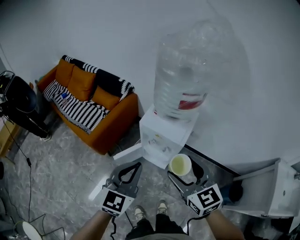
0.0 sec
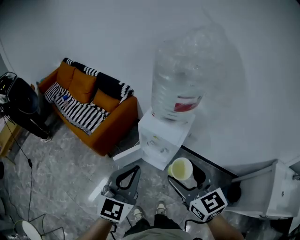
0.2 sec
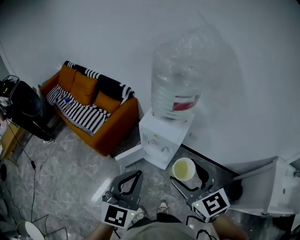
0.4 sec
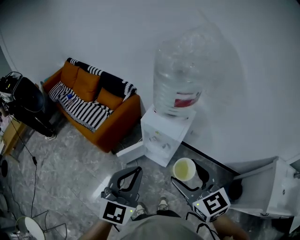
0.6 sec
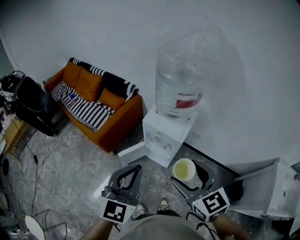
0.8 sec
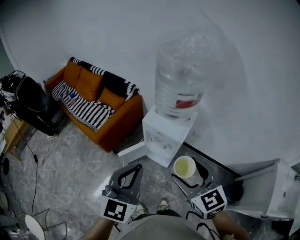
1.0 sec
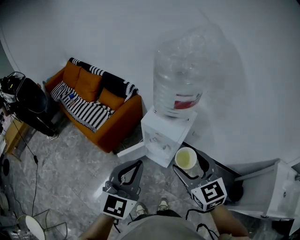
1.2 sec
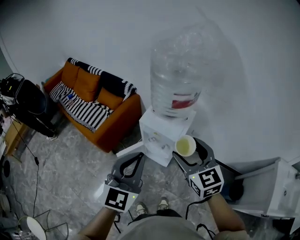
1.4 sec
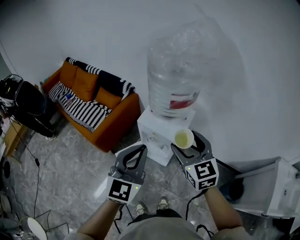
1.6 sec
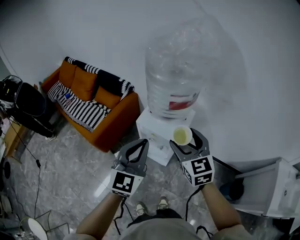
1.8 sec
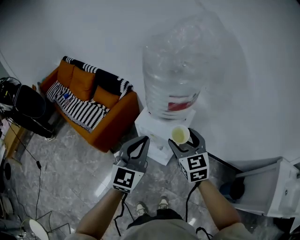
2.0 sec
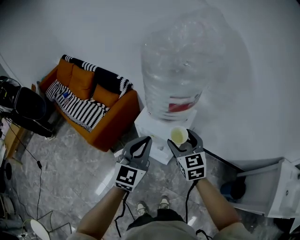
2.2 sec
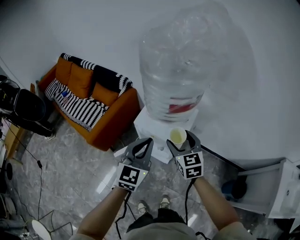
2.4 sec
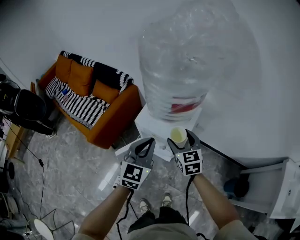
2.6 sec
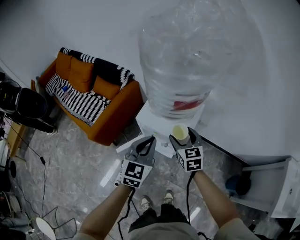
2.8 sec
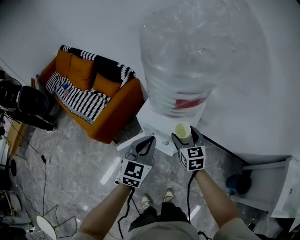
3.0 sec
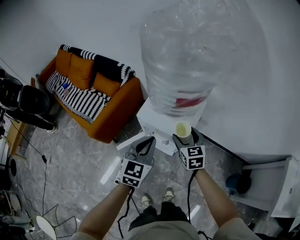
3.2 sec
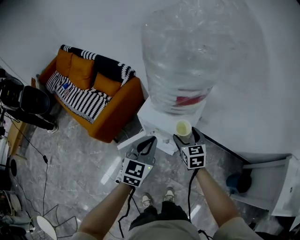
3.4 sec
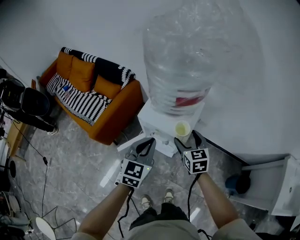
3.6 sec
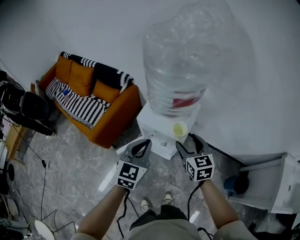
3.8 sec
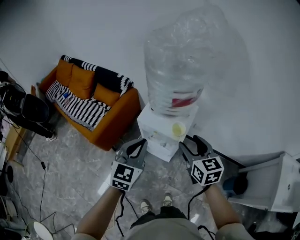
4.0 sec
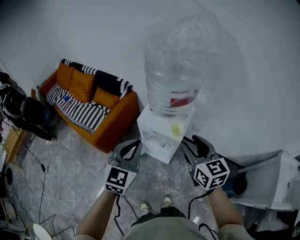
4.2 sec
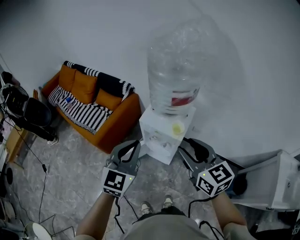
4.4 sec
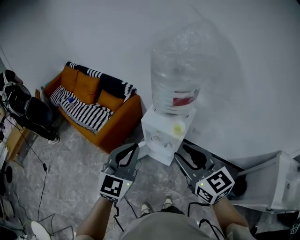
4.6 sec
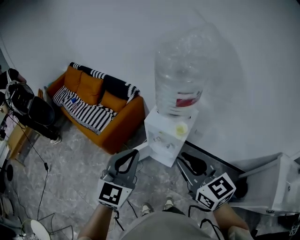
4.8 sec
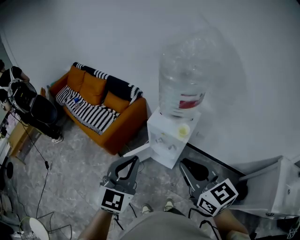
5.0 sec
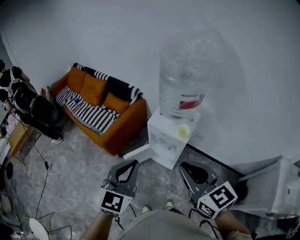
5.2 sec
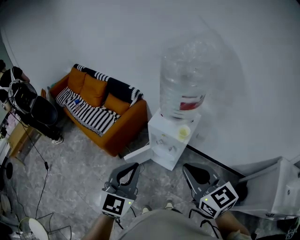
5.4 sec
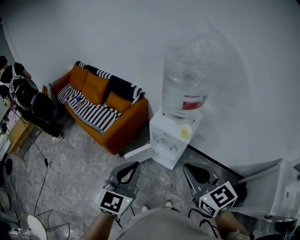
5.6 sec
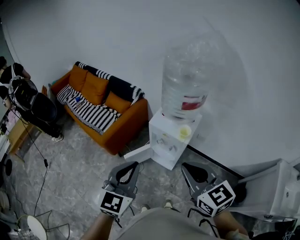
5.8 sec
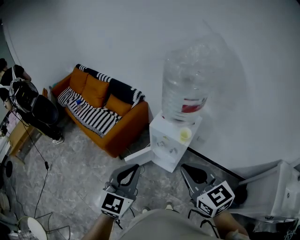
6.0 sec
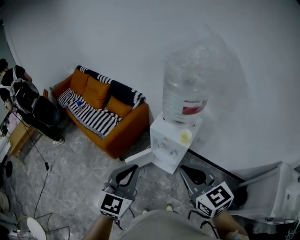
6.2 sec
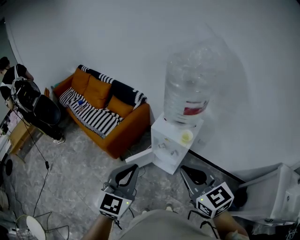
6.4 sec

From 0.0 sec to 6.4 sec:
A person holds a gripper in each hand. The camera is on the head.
From 0.0 sec to 1.6 sec: The right gripper travels forward and to the right by approximately 10 cm. The left gripper heads upward, covering approximately 10 cm, and goes backward and returns, about 10 cm each way.
From 1.6 sec to 3.2 sec: The grippers both shift downward and forward by about 25 cm.
From 3.2 sec to 4.8 sec: The grippers both shift upward and backward by roughly 35 cm. The right gripper swivels approximately 30 degrees, and closes.
From 4.8 sec to 6.4 sec: The left gripper shifts by roughly 5 cm.

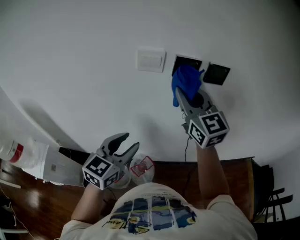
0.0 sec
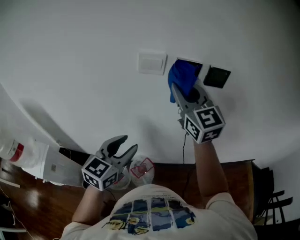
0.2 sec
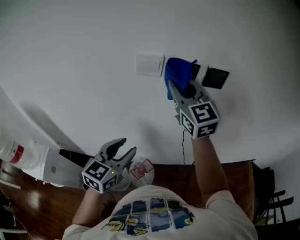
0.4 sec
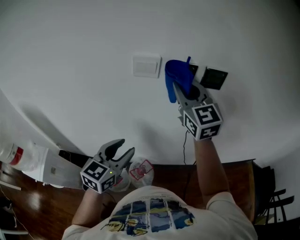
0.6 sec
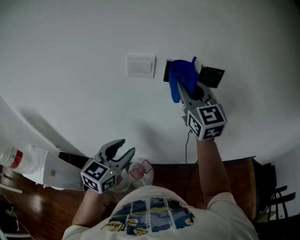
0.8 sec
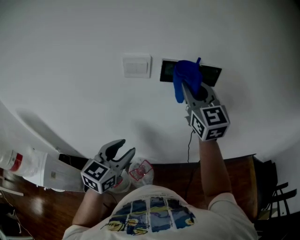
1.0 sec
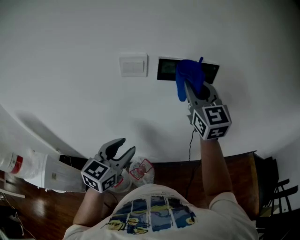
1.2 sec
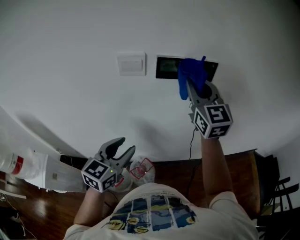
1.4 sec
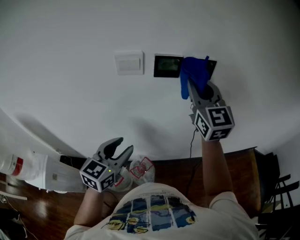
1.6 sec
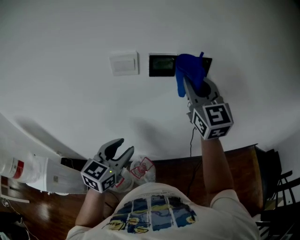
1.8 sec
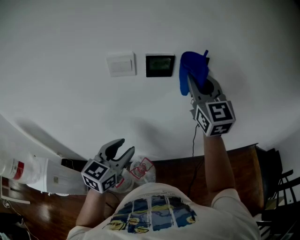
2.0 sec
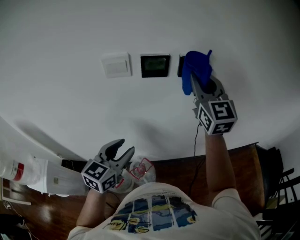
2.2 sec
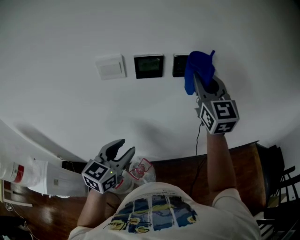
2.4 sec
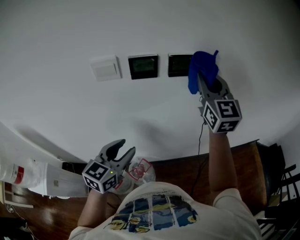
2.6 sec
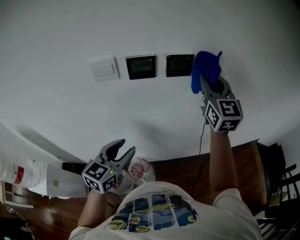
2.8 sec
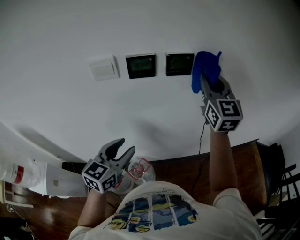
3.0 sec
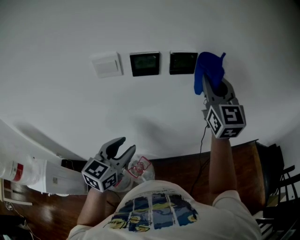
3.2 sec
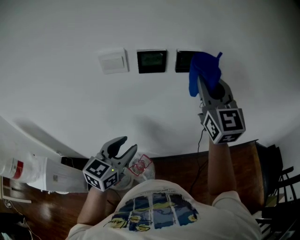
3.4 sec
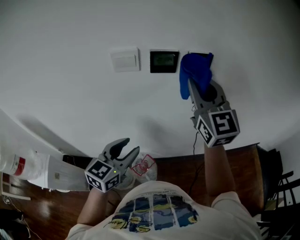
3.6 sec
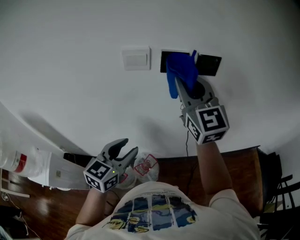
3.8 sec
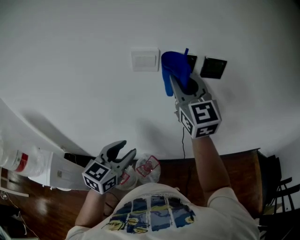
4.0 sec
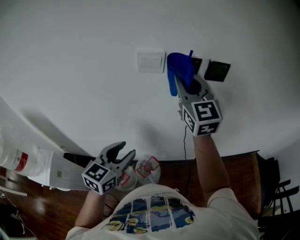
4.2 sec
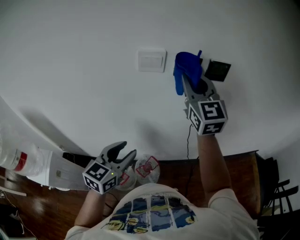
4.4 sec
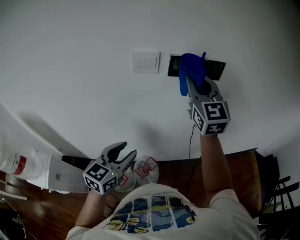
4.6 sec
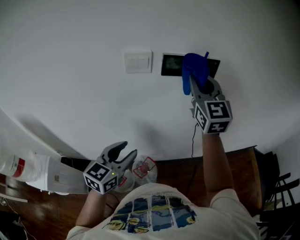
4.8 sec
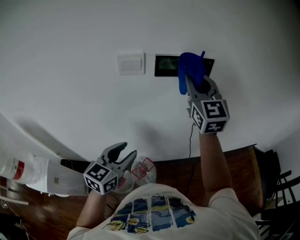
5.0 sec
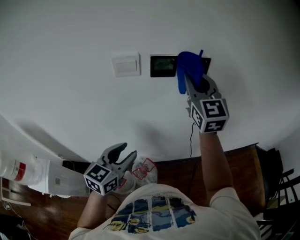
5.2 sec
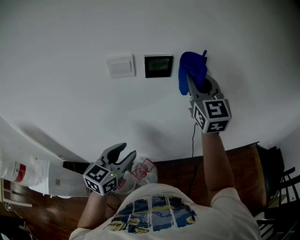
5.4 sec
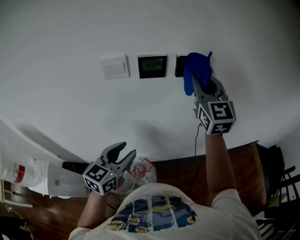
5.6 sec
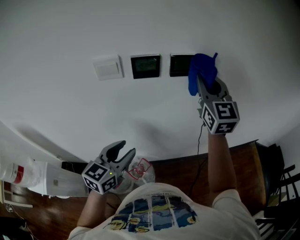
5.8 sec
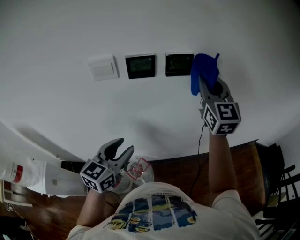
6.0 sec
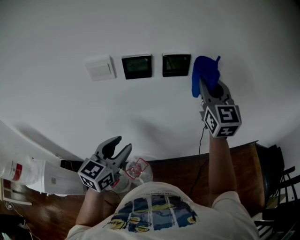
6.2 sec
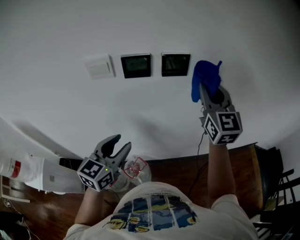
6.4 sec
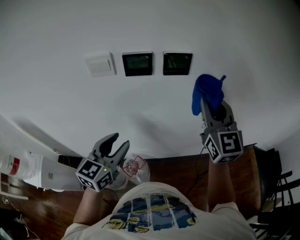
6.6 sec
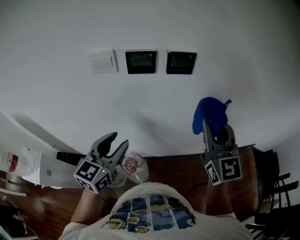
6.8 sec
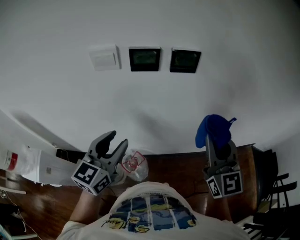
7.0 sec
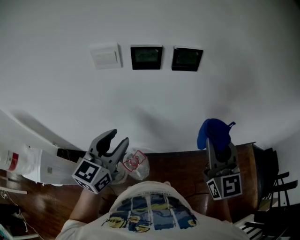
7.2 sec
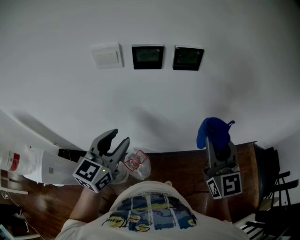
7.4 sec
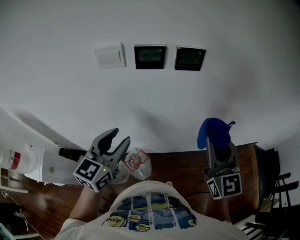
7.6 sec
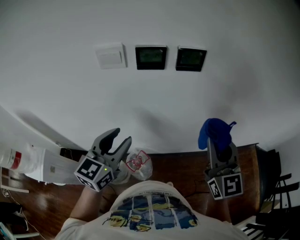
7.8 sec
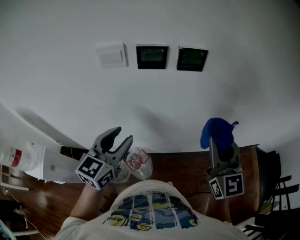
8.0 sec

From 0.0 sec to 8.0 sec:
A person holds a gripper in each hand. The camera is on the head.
From 0.0 sec to 1.6 sec: The right gripper is displaced to the right by about 10 cm.
From 1.6 sec to 3.2 sec: The right gripper heads to the right, covering roughly 10 cm, while the left gripper moves to the right, approximately 5 cm.
From 3.2 sec to 4.8 sec: The right gripper shifts approximately 15 cm to the left. The left gripper travels to the left by about 5 cm.
From 4.8 sec to 6.4 sec: The left gripper goes approximately 10 cm to the right and forward. The right gripper shifts some 15 cm to the right.
From 6.4 sec to 8.0 sec: The right gripper heads backward and downward, covering some 15 cm.

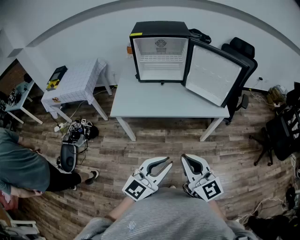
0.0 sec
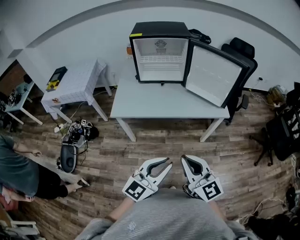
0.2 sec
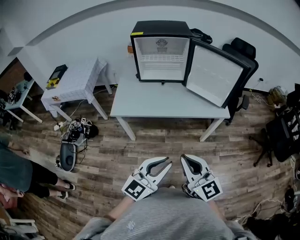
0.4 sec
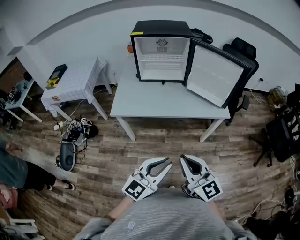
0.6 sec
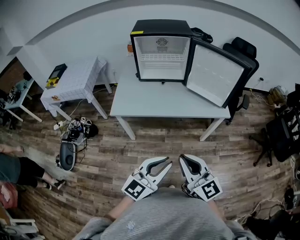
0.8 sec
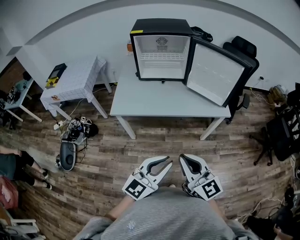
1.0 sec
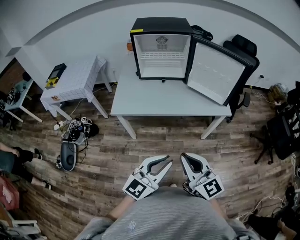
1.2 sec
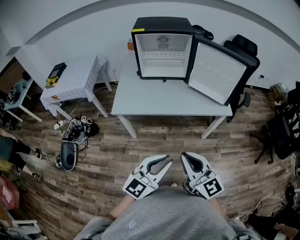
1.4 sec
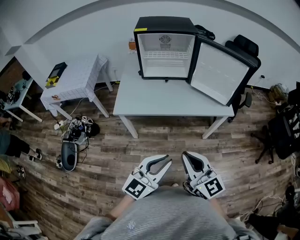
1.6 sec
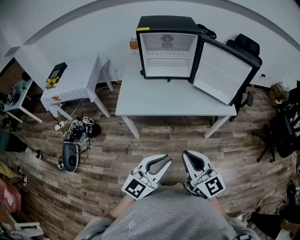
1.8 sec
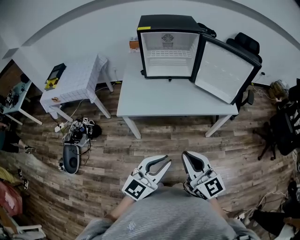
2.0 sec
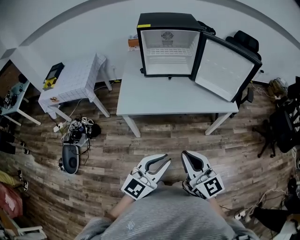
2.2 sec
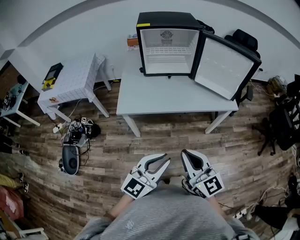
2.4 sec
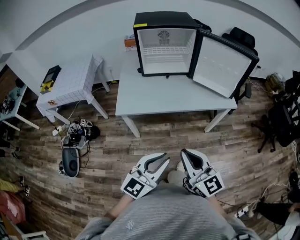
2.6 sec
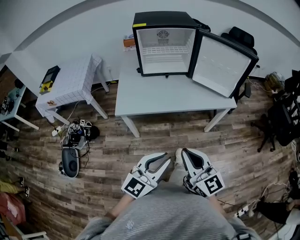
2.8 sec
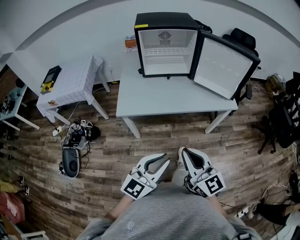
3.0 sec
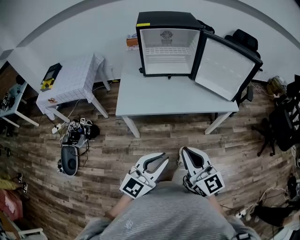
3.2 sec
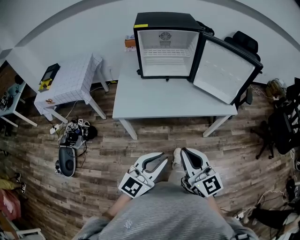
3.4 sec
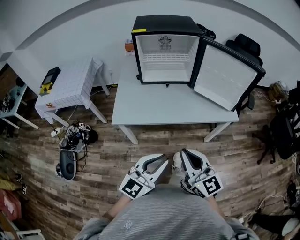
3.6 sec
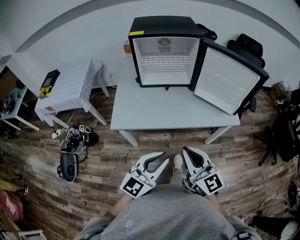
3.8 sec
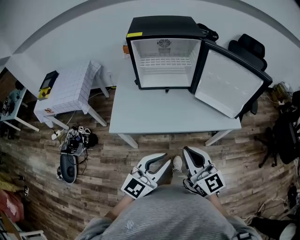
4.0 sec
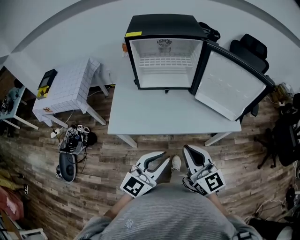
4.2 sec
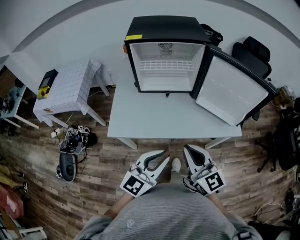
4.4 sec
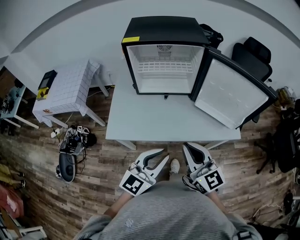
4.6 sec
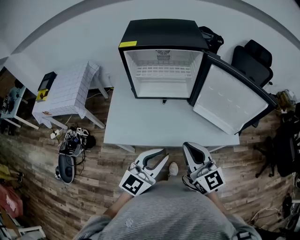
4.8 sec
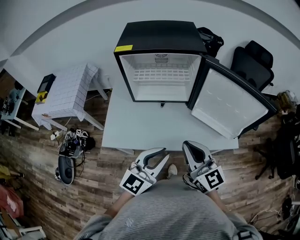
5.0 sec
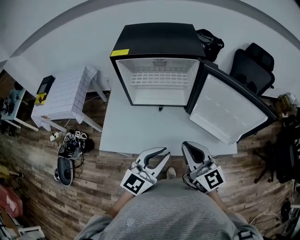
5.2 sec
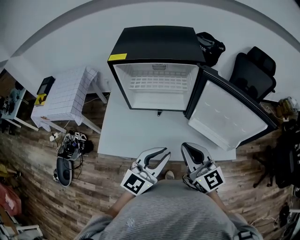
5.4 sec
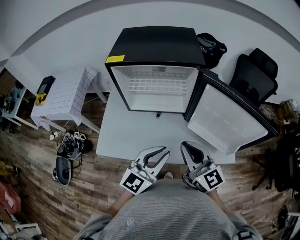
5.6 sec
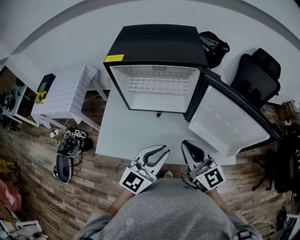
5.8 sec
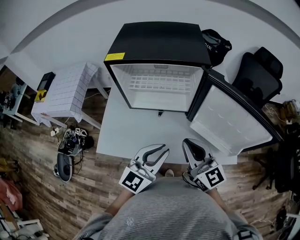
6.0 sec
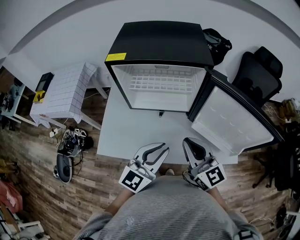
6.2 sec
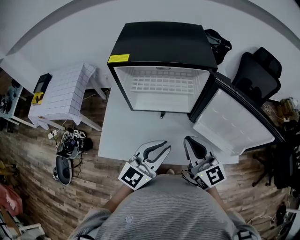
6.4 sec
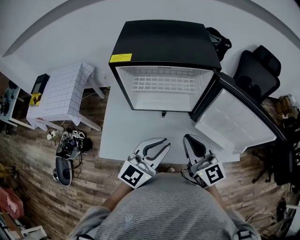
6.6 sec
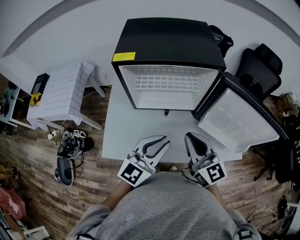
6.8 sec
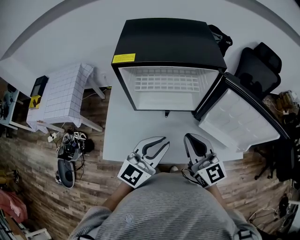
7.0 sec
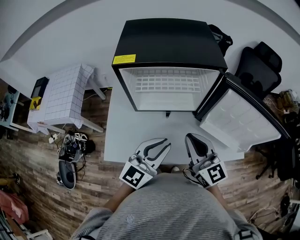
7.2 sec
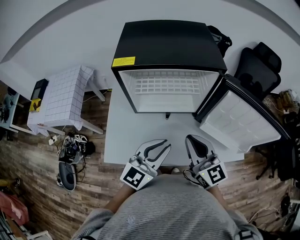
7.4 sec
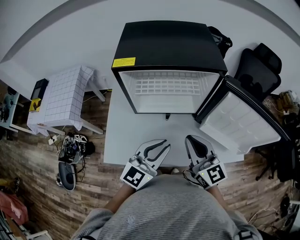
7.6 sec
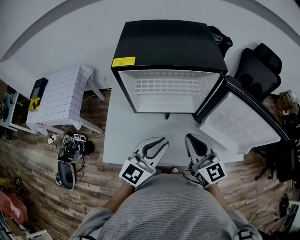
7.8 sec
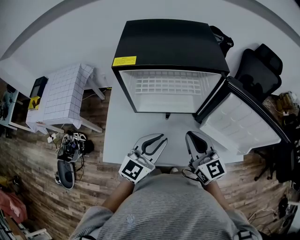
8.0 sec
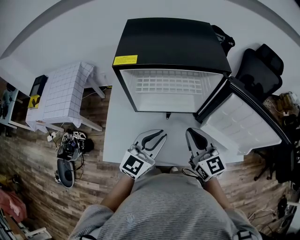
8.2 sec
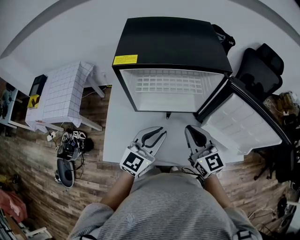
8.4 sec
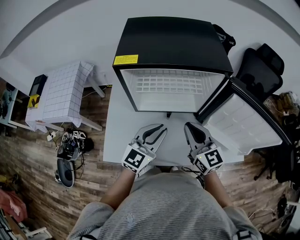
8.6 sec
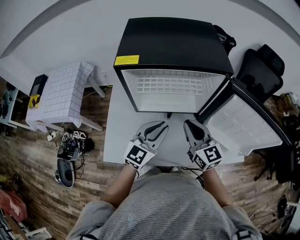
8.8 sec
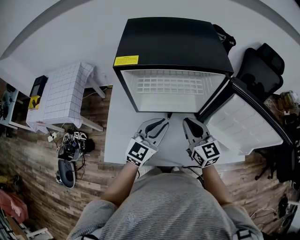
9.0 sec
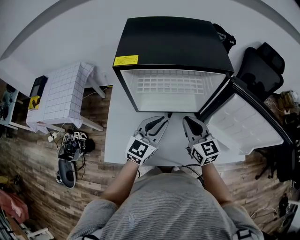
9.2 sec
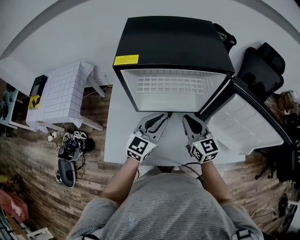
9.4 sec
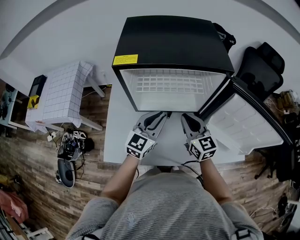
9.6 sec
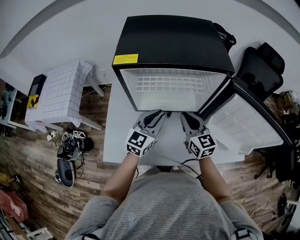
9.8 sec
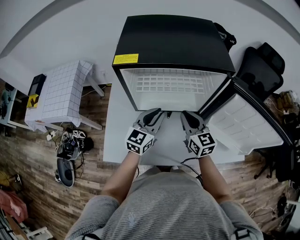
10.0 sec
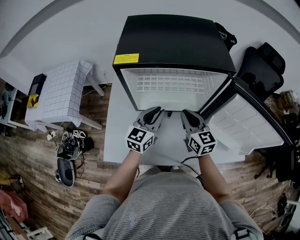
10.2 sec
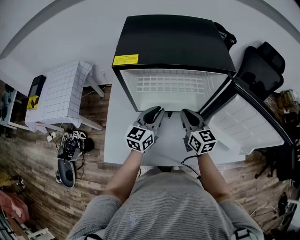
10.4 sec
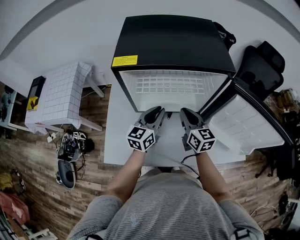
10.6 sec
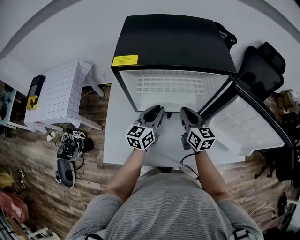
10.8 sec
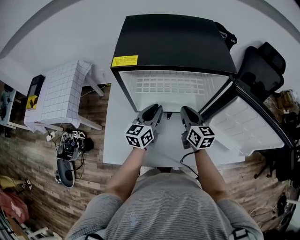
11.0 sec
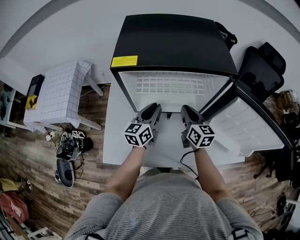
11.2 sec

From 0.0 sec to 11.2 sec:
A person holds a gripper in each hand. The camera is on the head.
From 0.0 sec to 1.6 sec: The grippers move only a little.
From 1.6 sec to 3.2 sec: Both grippers travel together to the left, some 5 cm.
From 3.2 sec to 4.8 sec: The two grippers go about 25 cm forward.
From 4.8 sec to 6.4 sec: Both grippers travel together forward, some 15 cm.
From 6.4 sec to 8.0 sec: The right gripper ends up some 5 cm from where it was. The left gripper is displaced to the left and forward by some 10 cm.
From 8.0 sec to 9.6 sec: Both grippers travel together forward and downward, about 10 cm.
From 9.6 sec to 11.2 sec: Both grippers travel together forward, roughly 5 cm. The left gripper rotates roughly 30 degrees.
